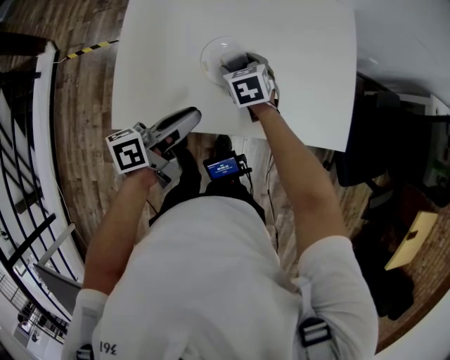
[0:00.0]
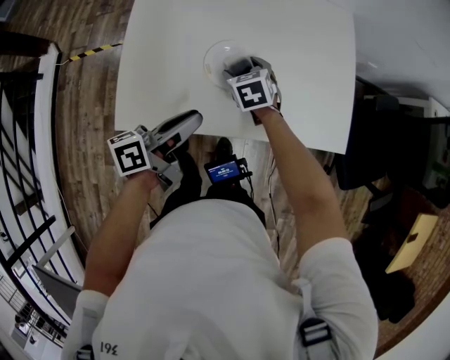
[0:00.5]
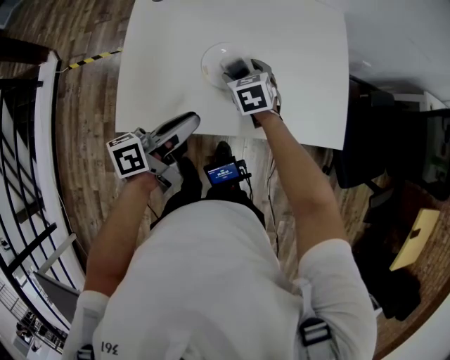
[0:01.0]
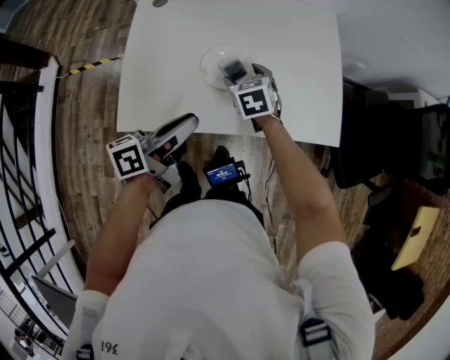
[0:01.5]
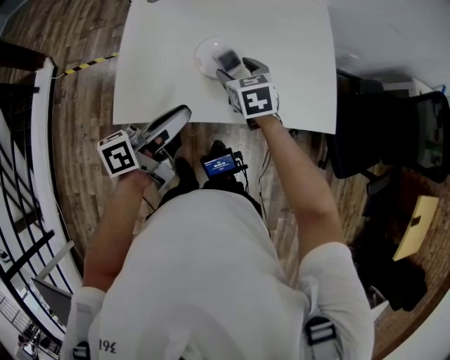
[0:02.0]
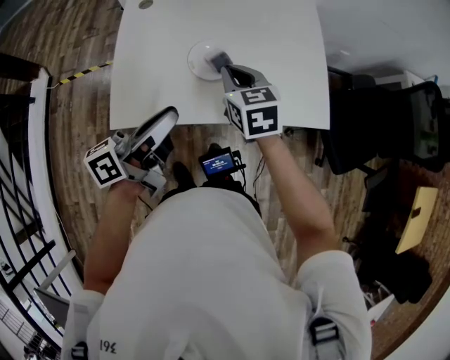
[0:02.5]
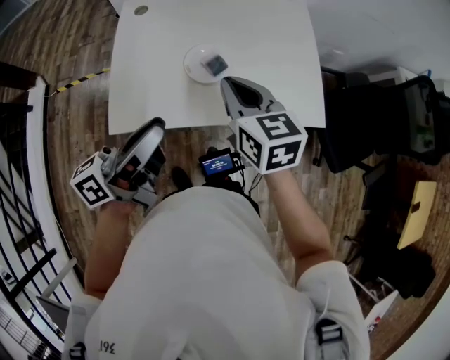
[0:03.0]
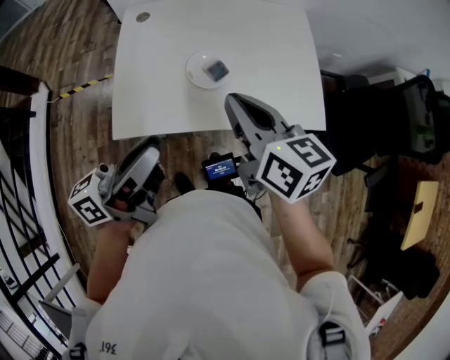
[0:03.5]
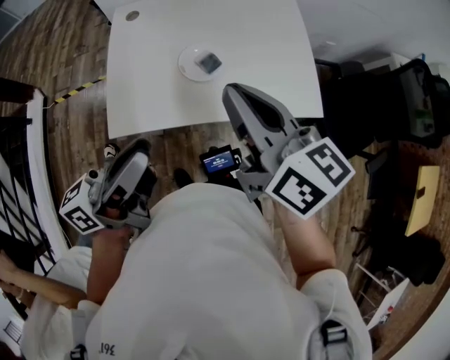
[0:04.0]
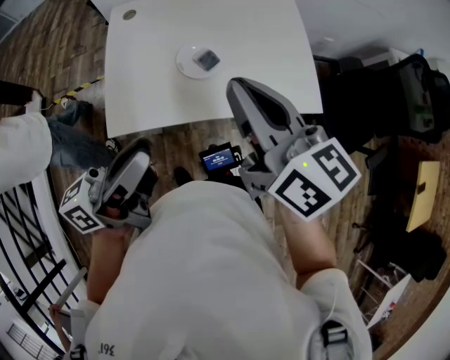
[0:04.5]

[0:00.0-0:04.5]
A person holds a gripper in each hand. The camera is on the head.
0:00.0 to 0:02.0: The right gripper moves upward and backward, some 10 cm; the left gripper heads upward, covering roughly 5 cm.
0:02.0 to 0:04.5: The left gripper goes approximately 15 cm upward and backward. Meanwhile the right gripper moves upward and backward, approximately 30 cm, tips its fingers upward by about 40 degrees, and closes its fingers.

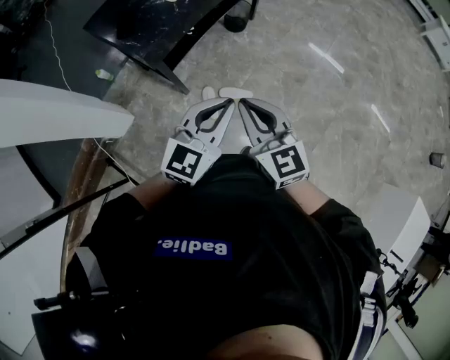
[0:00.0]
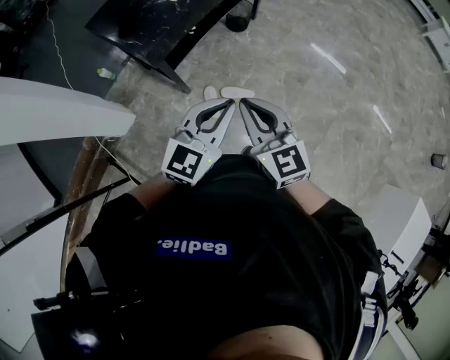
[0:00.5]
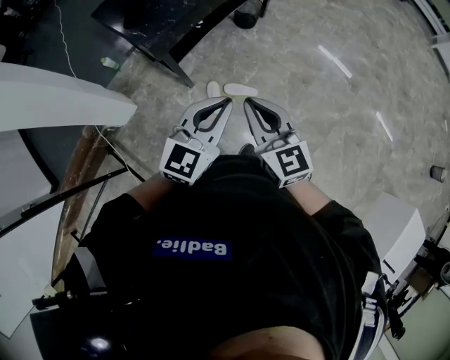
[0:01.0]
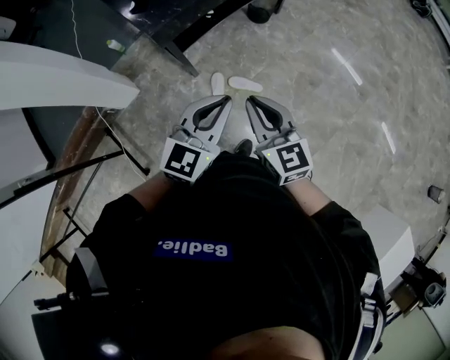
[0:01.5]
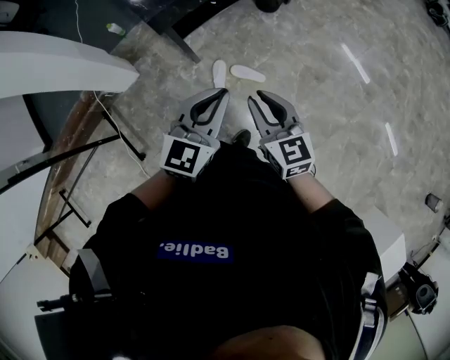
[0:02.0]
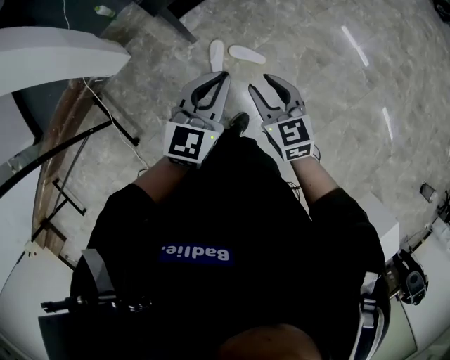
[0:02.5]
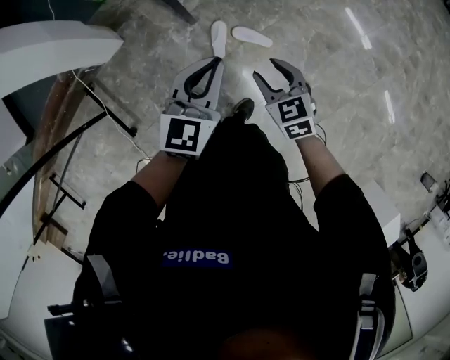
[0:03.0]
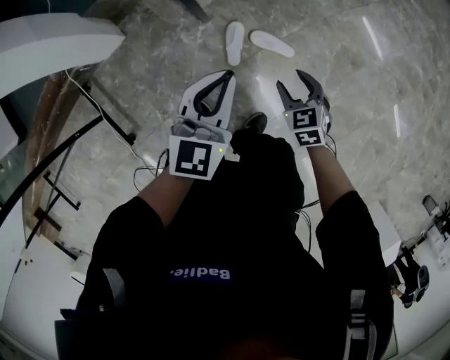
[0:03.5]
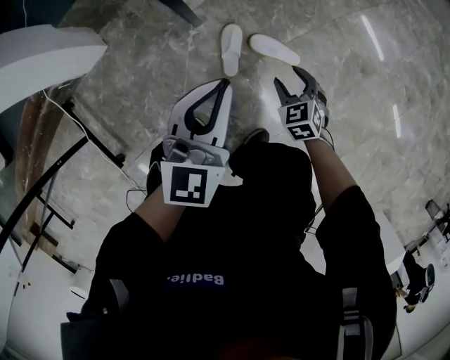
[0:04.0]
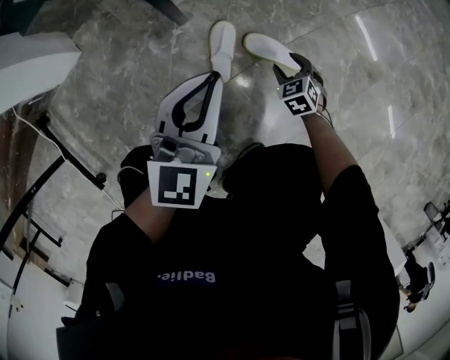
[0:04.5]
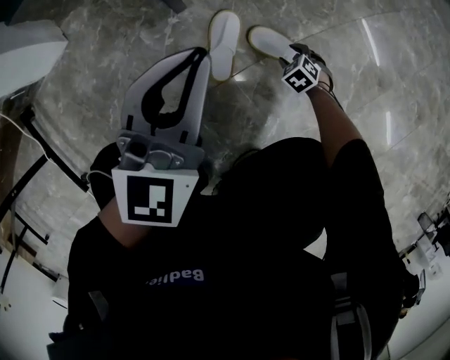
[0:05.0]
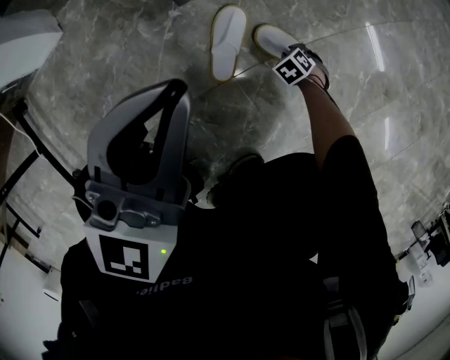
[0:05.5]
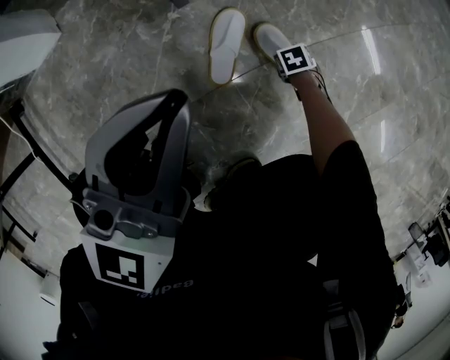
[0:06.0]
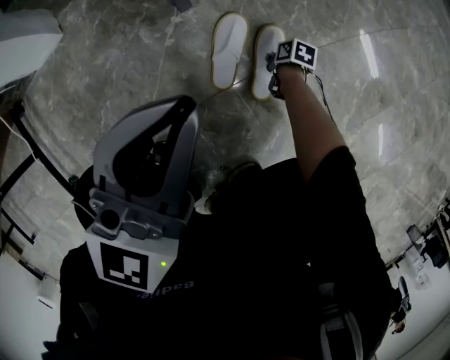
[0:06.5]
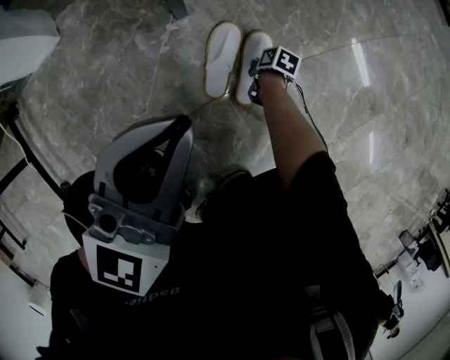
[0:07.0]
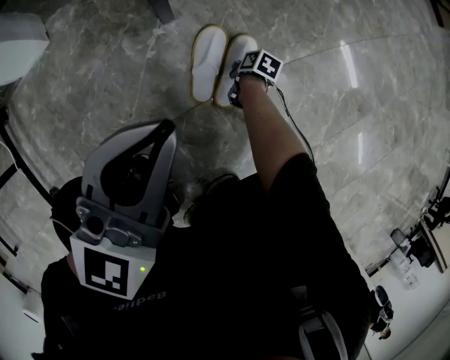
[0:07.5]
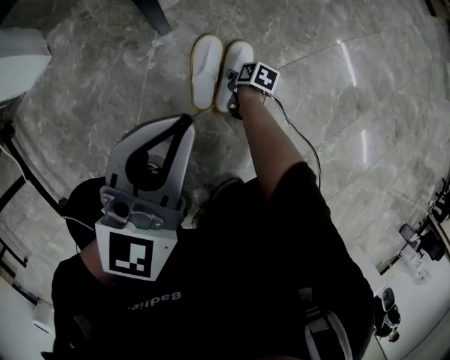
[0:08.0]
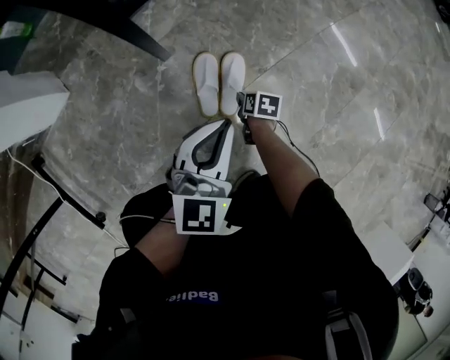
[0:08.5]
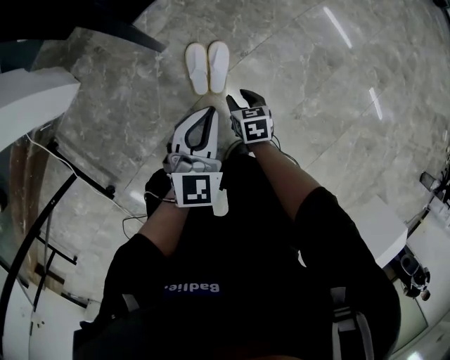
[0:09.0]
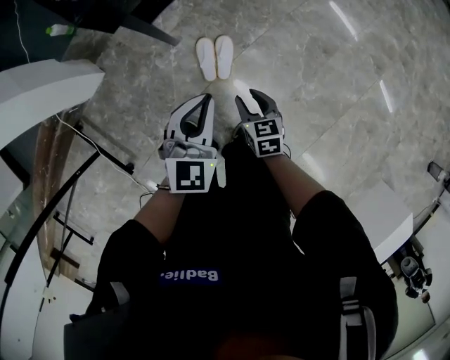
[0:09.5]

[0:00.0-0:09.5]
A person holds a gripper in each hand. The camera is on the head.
0:00.0 to 0:02.0: The right gripper shifts about 10 cm downward and to the right. Meanwhile the left gripper is displaced downward by about 5 cm, and turns by roughly 20 degrees.
0:02.0 to 0:04.0: The two grippers go about 50 cm downward. The right gripper tips its fingers downward by about 30 degrees, and opens up.
0:04.0 to 0:05.5: The right gripper goes approximately 40 cm downward, rotates approximately 30 degrees, and closes its fingers. The left gripper travels downward by some 15 cm.
0:05.5 to 0:07.5: The right gripper moves approximately 10 cm, and rolls clockwise, seen from behind, by some 80 degrees.
0:07.5 to 0:09.5: The right gripper is displaced upward by some 60 cm, rotates approximately 40 degrees, and opens up. Meanwhile the left gripper moves upward, some 30 cm, and changes its angle by roughly 30 degrees.

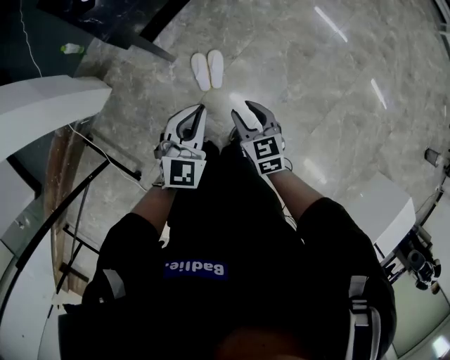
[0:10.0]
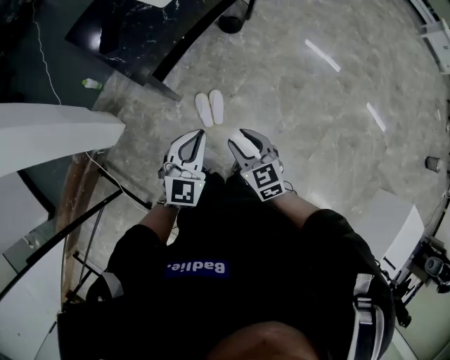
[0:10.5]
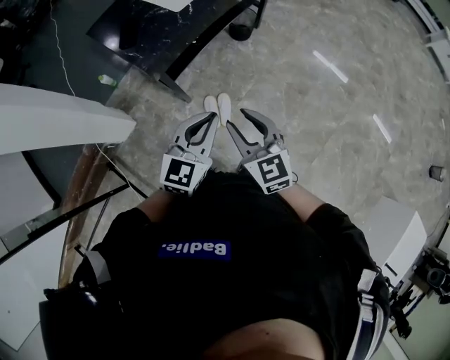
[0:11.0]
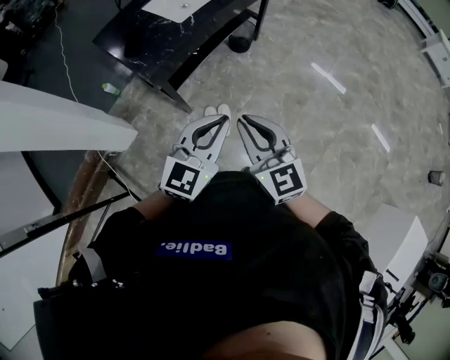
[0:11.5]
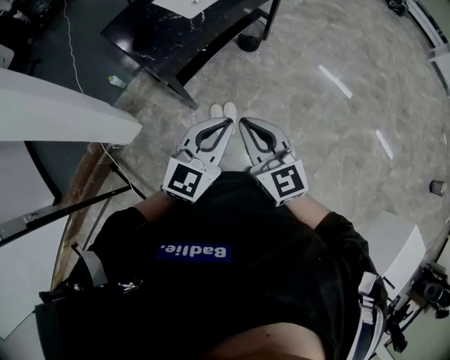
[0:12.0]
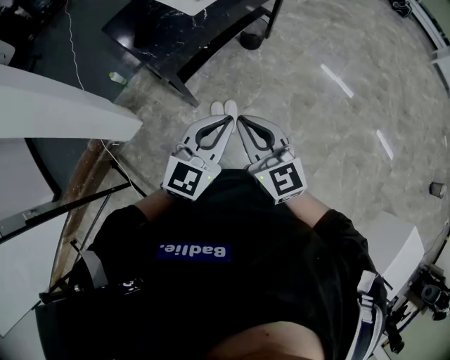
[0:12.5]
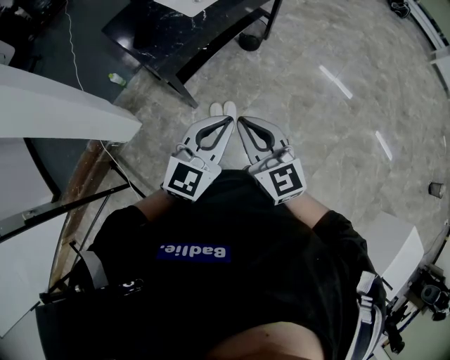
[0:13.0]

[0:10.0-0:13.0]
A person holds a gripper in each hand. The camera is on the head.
0:10.0 to 0:11.5: Both grippers travel together upward, about 30 cm. The right gripper tips its fingers upward by some 30 degrees, and closes; the left gripper turns by some 20 degrees.
0:11.5 to 0:13.0: The grippers move only a little.

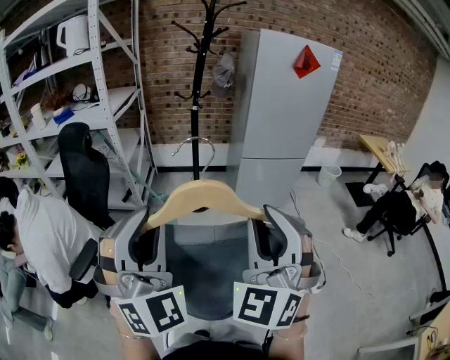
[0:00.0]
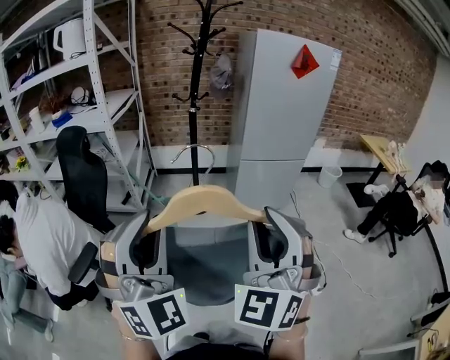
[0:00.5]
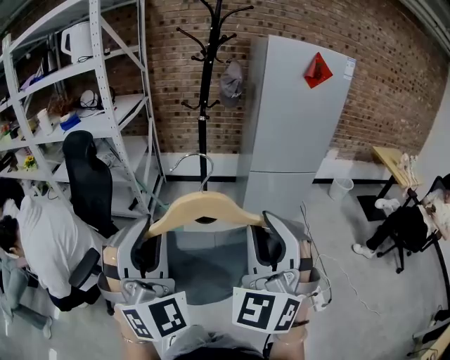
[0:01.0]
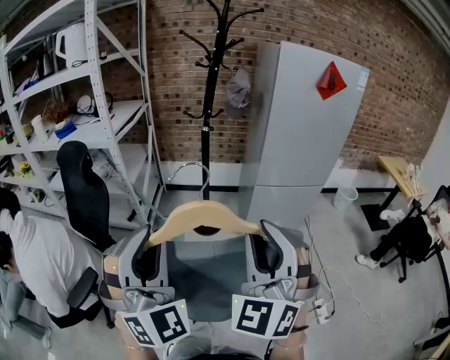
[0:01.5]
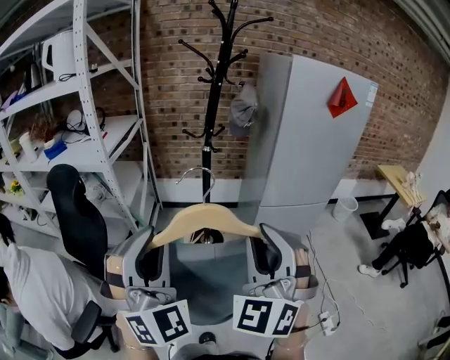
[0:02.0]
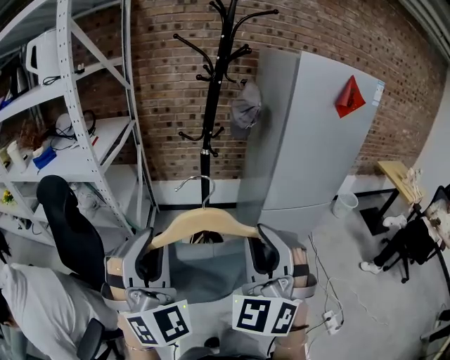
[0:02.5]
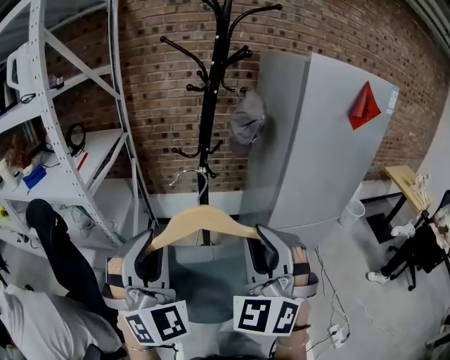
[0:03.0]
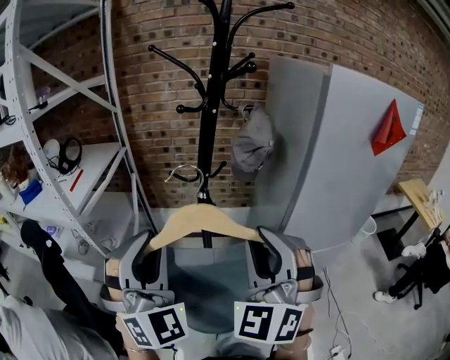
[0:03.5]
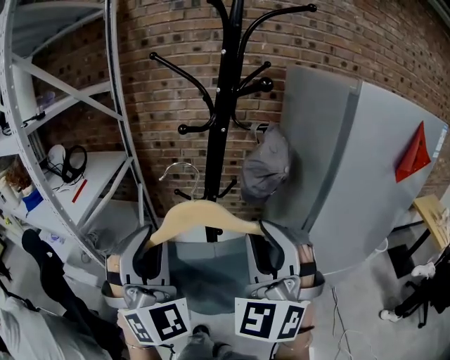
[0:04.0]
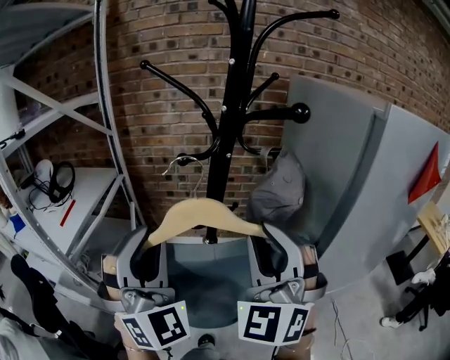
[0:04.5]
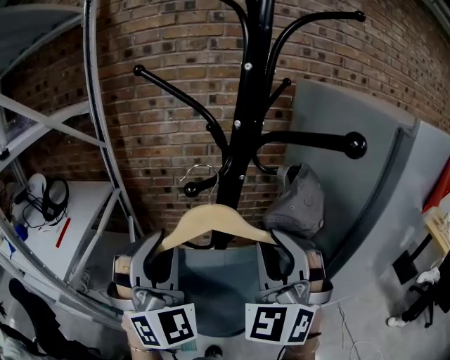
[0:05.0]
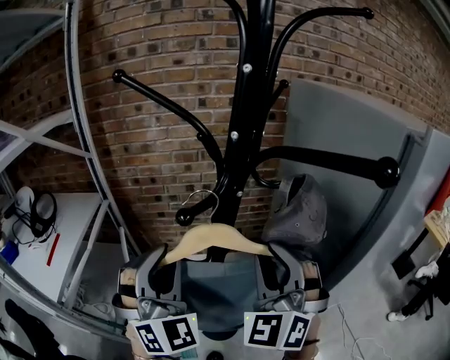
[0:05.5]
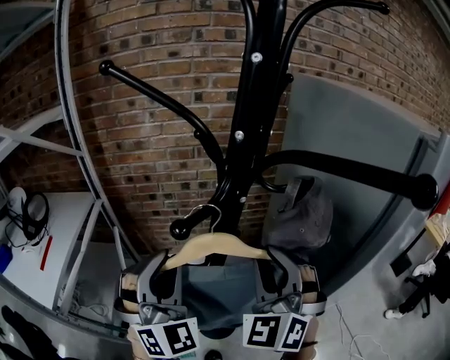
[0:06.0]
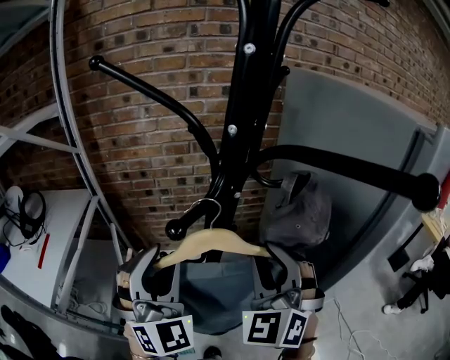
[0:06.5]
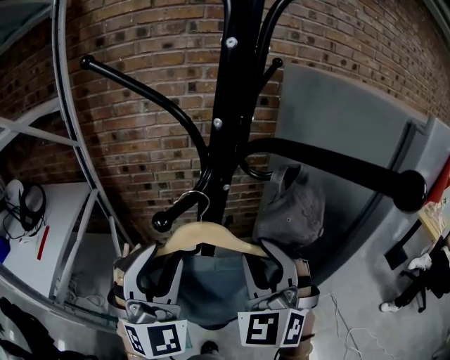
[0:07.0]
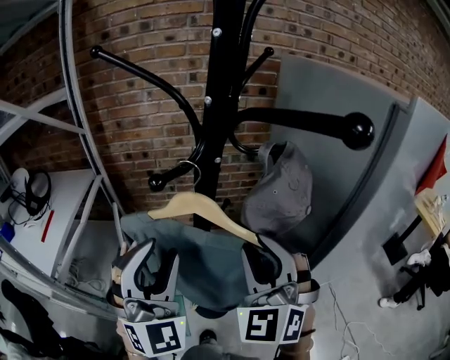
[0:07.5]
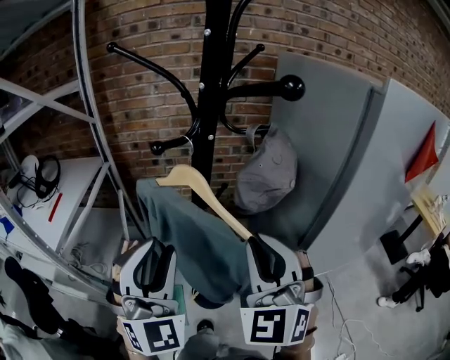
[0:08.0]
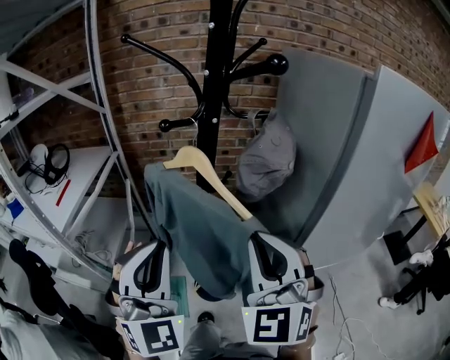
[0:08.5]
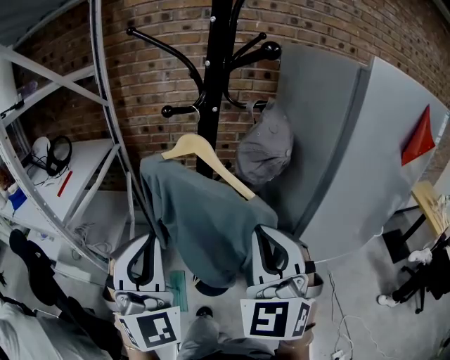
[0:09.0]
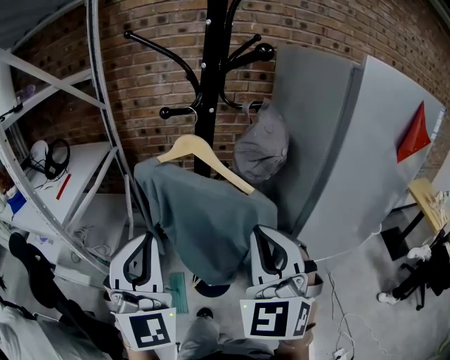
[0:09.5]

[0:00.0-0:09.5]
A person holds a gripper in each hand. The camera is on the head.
0:00.0 to 0:02.0: Both grippers move forward, about 25 cm.
0:02.0 to 0:04.0: The two grippers go about 40 cm forward.
0:04.0 to 0:05.5: The two grippers go some 20 cm forward.
0:05.5 to 0:07.5: Both grippers move backward, approximately 5 cm.
0:07.5 to 0:09.5: The grippers both shift backward by some 15 cm. The left gripper closes; the right gripper closes its fingers.
